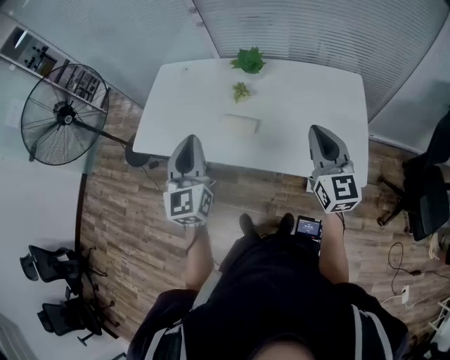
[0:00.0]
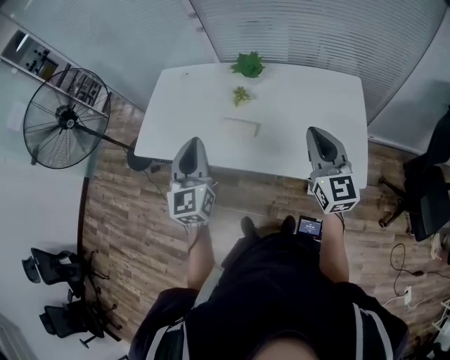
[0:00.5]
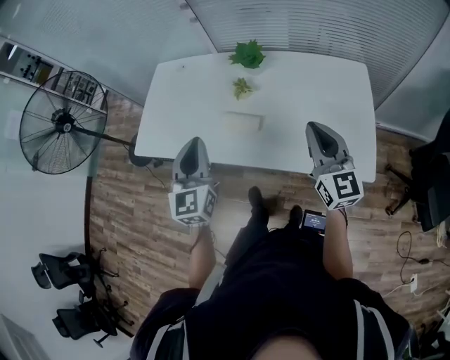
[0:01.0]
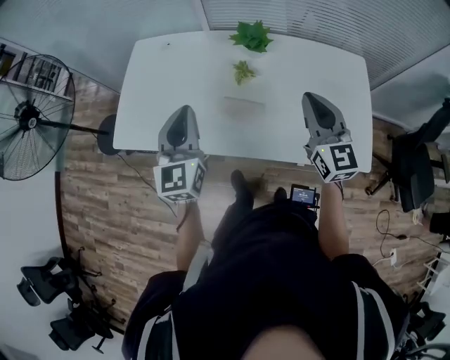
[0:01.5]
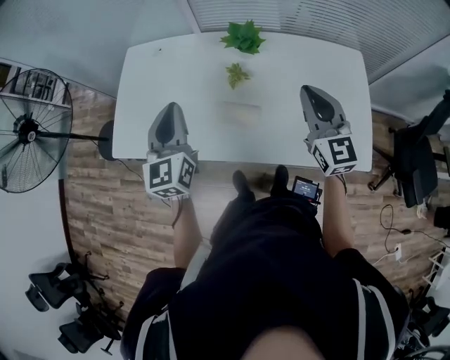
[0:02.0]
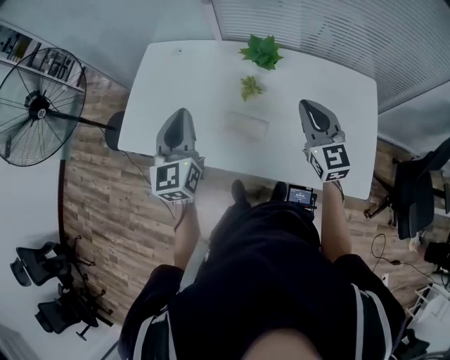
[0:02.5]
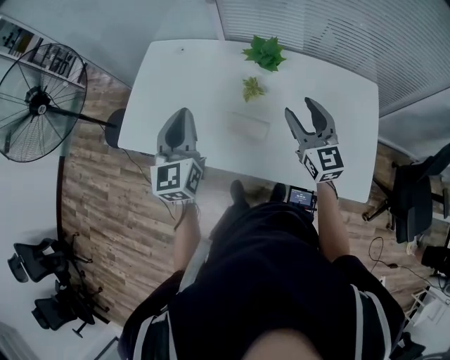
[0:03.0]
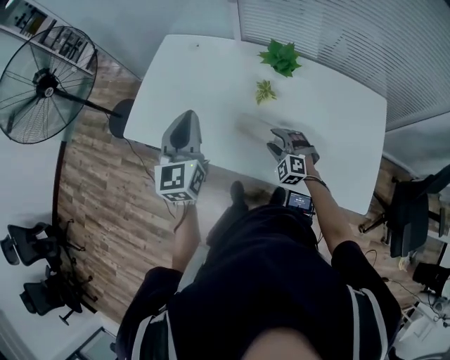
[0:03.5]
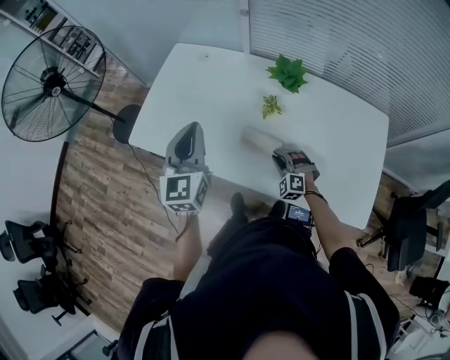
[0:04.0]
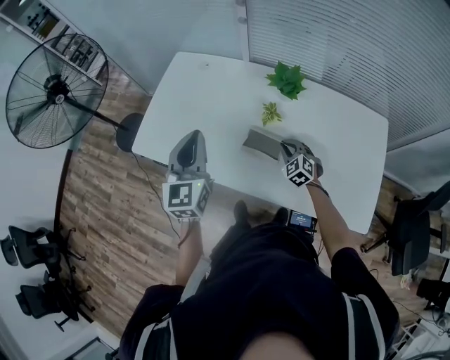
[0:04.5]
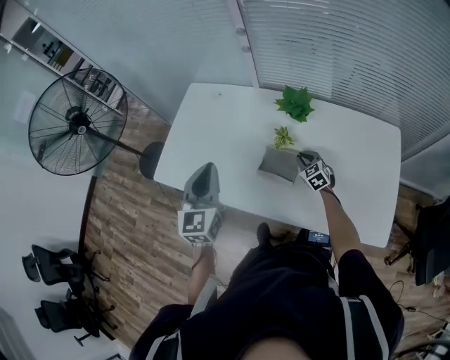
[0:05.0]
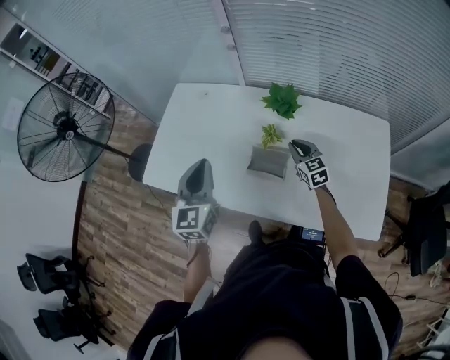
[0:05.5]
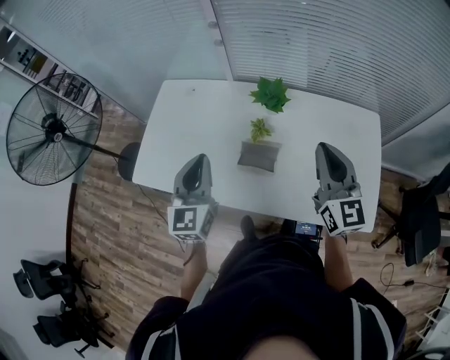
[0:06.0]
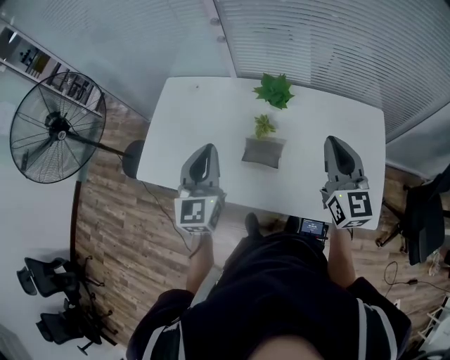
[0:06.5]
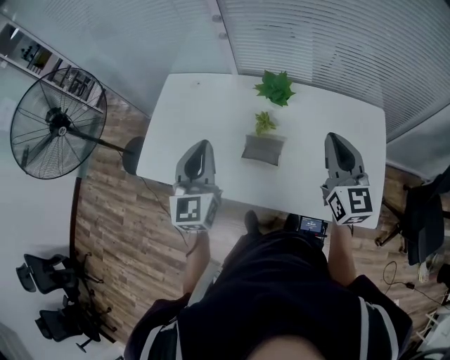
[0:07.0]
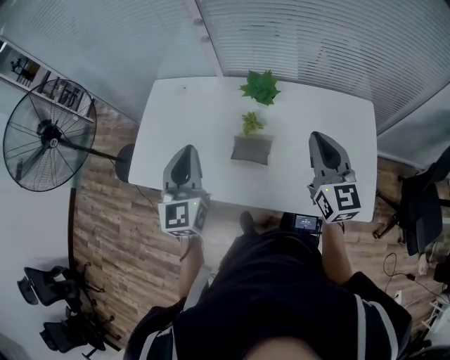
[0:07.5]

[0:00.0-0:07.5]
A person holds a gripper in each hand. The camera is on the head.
0:00.0 to 0:02.0: The grippers both shift forward and to the left by roughly 15 cm.
0:02.0 to 0:04.0: The right gripper is displaced downward by roughly 30 cm, twists approximately 60 degrees counterclockwise, seen from behind, and opens and closes again.
0:04.0 to 0:05.5: The right gripper moves forward, upward and to the right, some 20 cm, and rotates around the line of its fingers by some 60 degrees, clockwise from behind.
0:05.5 to 0:07.5: The left gripper shifts by roughly 5 cm, while the right gripper shifts roughly 25 cm upward and backward, and turns by about 30 degrees.

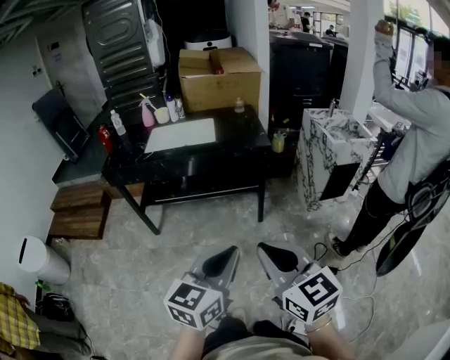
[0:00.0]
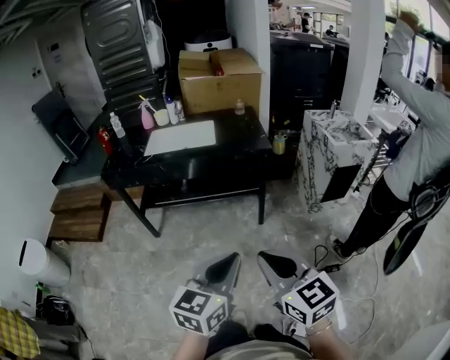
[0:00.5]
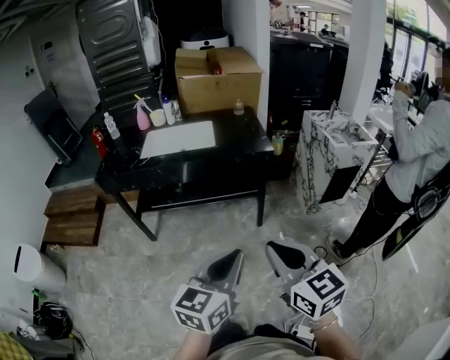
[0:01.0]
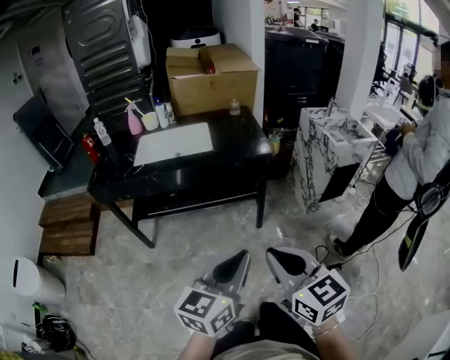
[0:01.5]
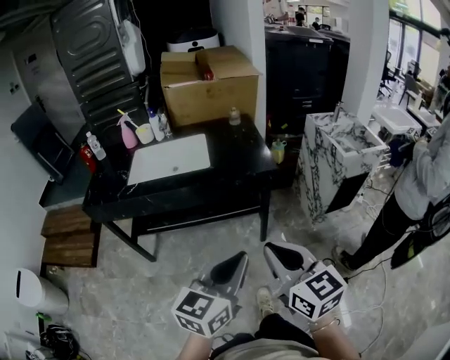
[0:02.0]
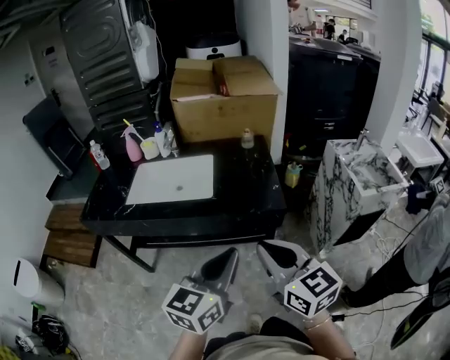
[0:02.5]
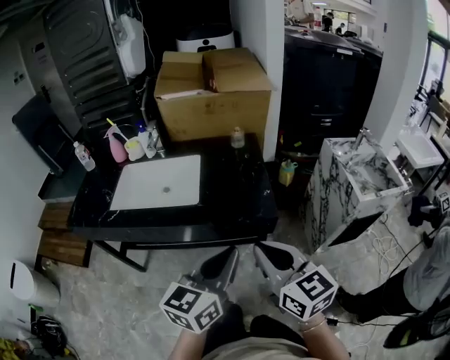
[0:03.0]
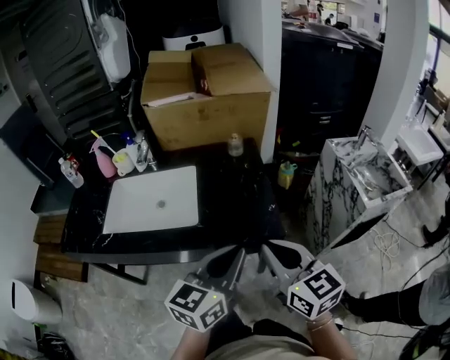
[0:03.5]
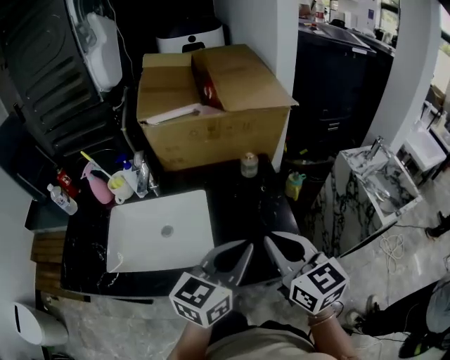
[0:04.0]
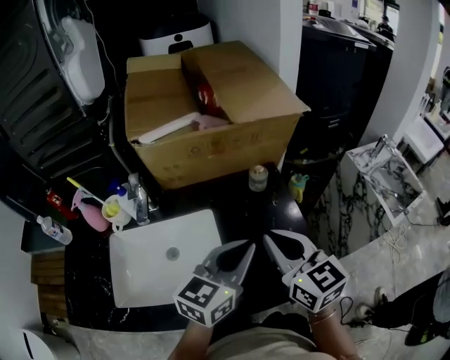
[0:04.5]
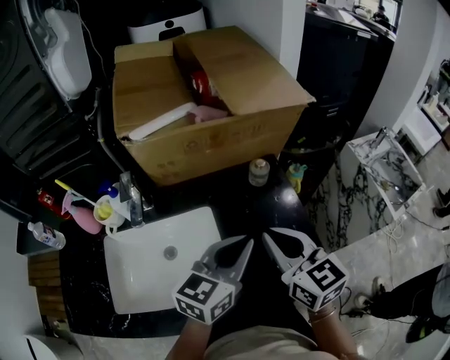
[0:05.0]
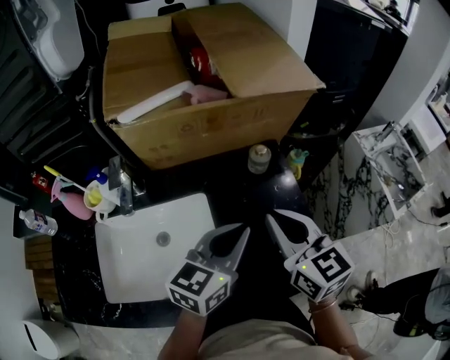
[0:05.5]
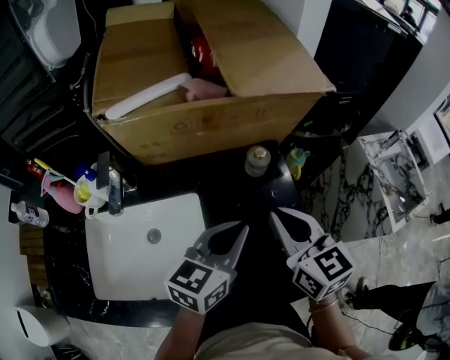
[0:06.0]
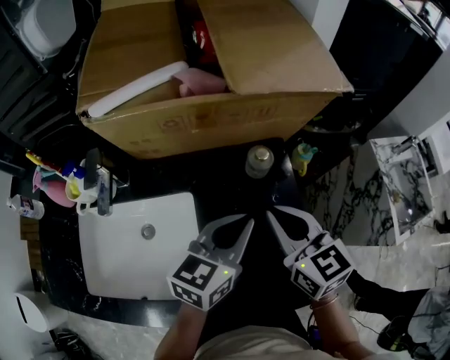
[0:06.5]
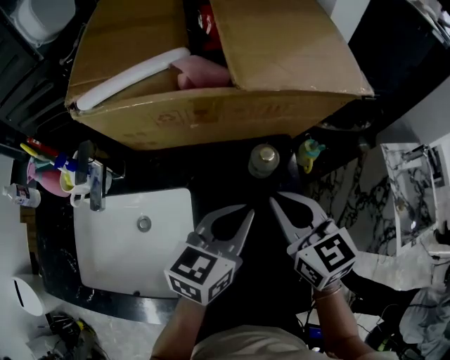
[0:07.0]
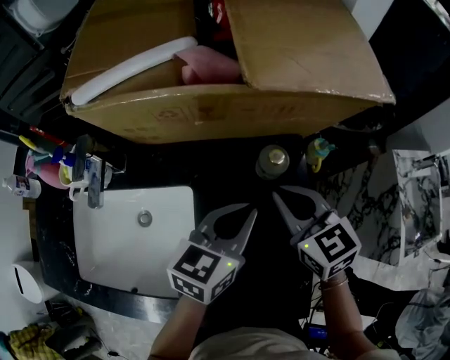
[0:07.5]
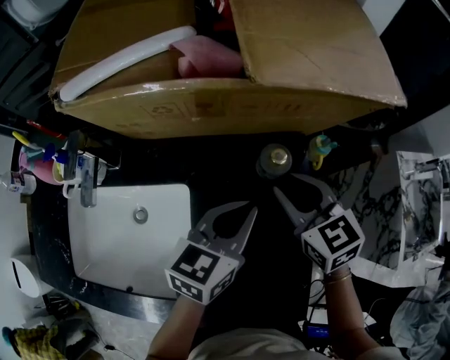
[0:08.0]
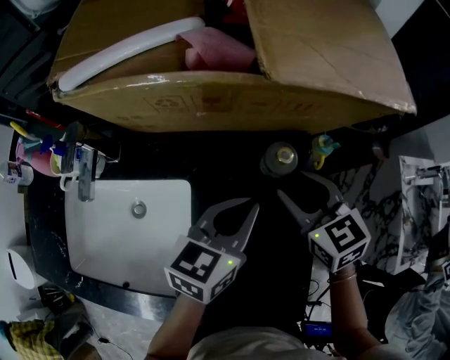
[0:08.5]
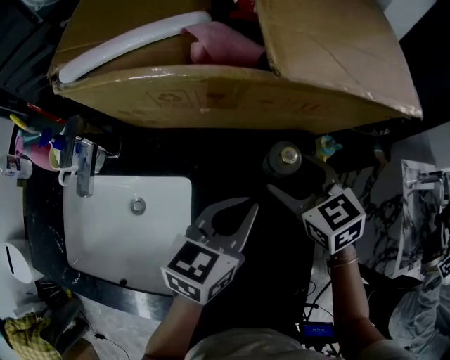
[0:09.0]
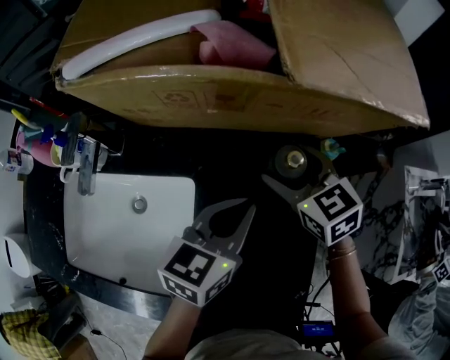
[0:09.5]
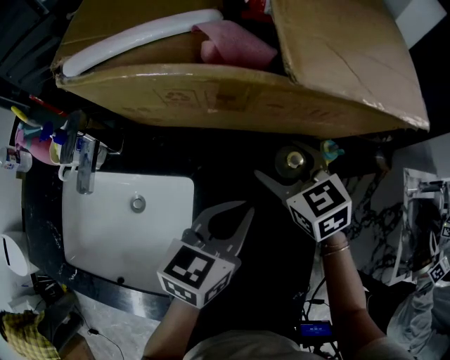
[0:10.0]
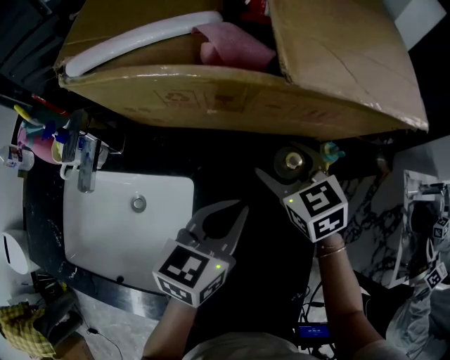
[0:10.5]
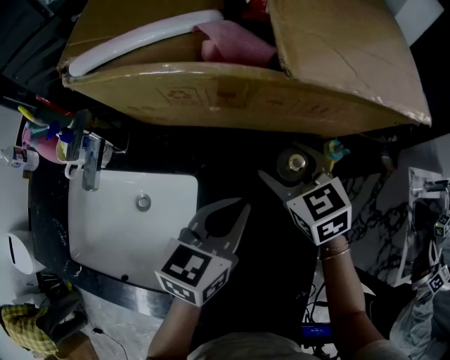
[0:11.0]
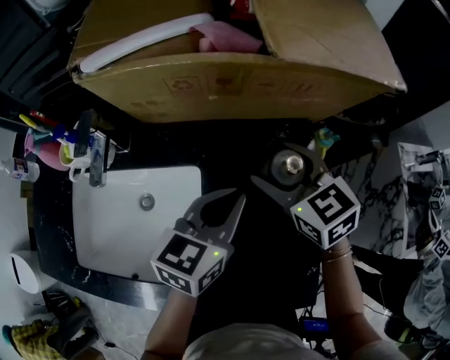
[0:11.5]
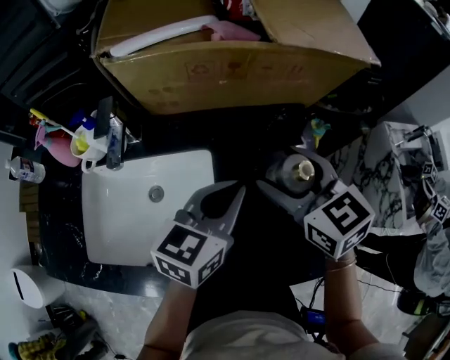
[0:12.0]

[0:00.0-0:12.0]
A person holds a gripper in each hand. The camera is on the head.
0:00.0 to 0:02.0: Both grippers travel together forward, about 25 cm.
0:02.0 to 0:04.0: Both grippers are carried forward, roughly 50 cm.
0:04.0 to 0:06.0: The right gripper heads forward, covering some 20 cm, while the left gripper is displaced forward and downward by roughly 20 cm.
0:06.0 to 0:08.0: Both grippers move forward and downward, approximately 15 cm. The right gripper changes its angle by about 20 degrees.
0:08.0 to 0:10.0: The right gripper goes some 5 cm forward, and opens its fingers.
0:10.0 to 0:12.0: The left gripper travels backward, to the left and upward by roughly 10 cm, while the right gripper shifts some 20 cm backward and upward.

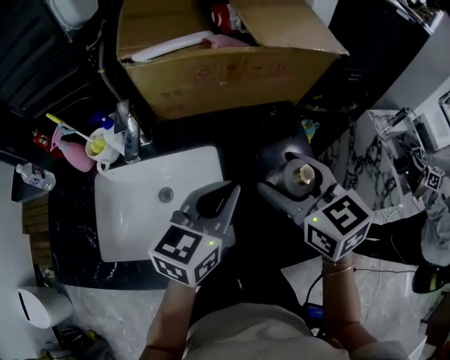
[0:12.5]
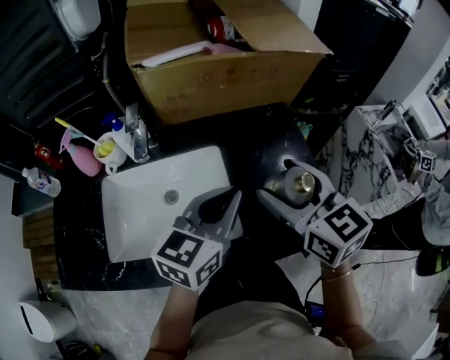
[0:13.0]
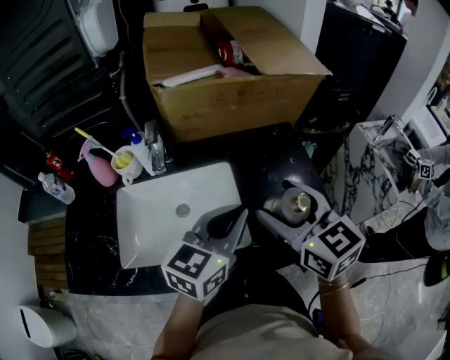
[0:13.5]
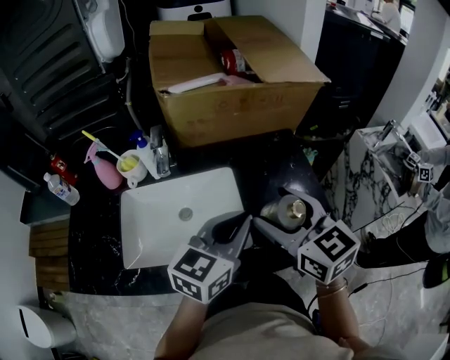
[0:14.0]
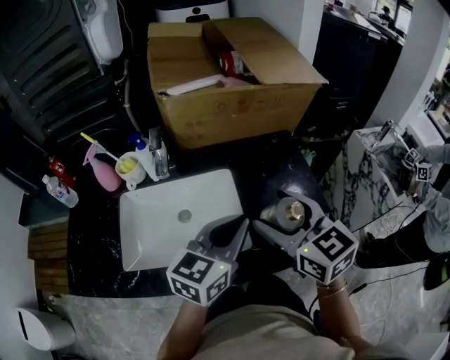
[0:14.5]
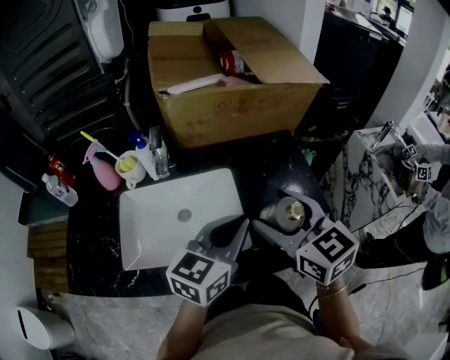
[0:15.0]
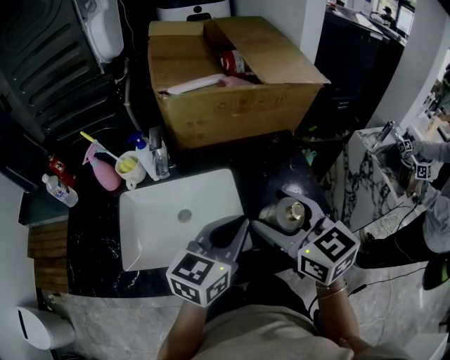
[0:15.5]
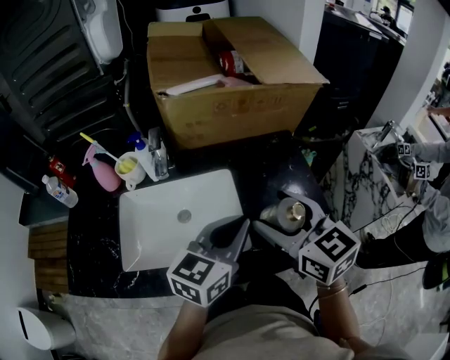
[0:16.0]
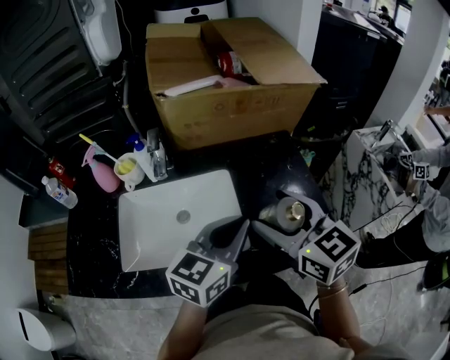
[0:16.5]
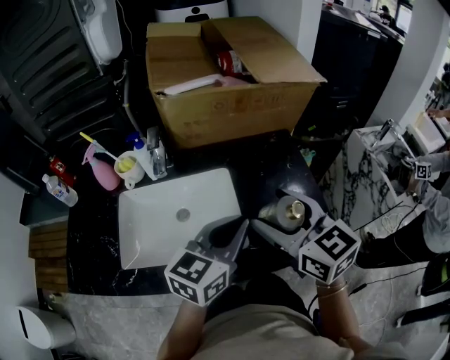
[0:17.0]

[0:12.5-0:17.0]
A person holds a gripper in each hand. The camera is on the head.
0:12.5 to 0:14.5: The right gripper shifts roughly 10 cm backward and to the left; the left gripper moves backward, roughly 10 cm.
0:14.5 to 0:17.0: The two grippers keep their place.

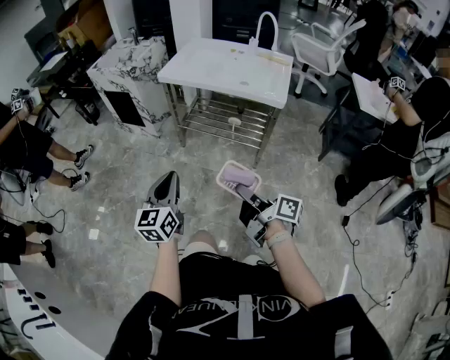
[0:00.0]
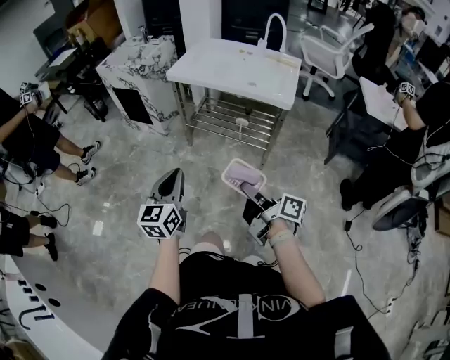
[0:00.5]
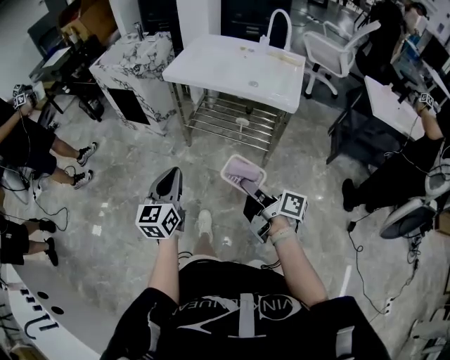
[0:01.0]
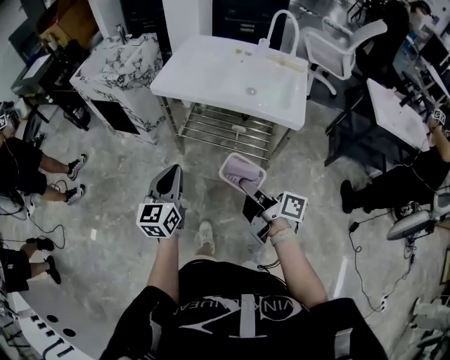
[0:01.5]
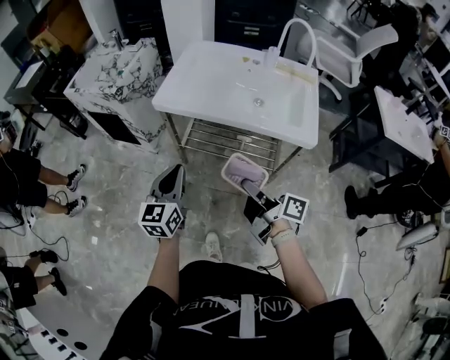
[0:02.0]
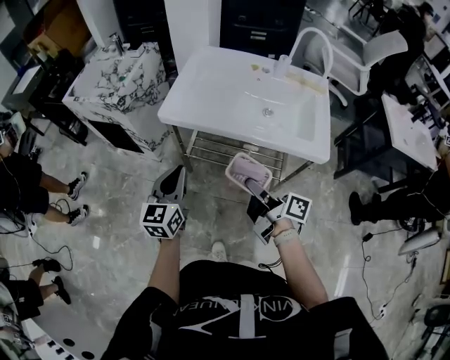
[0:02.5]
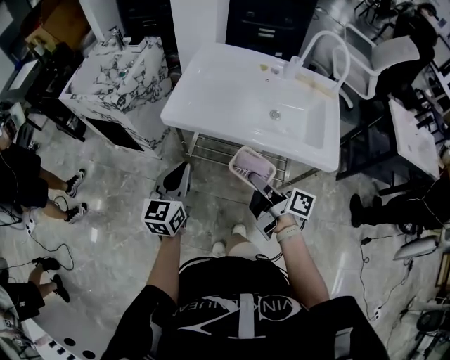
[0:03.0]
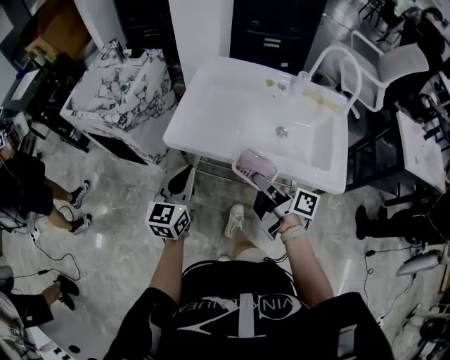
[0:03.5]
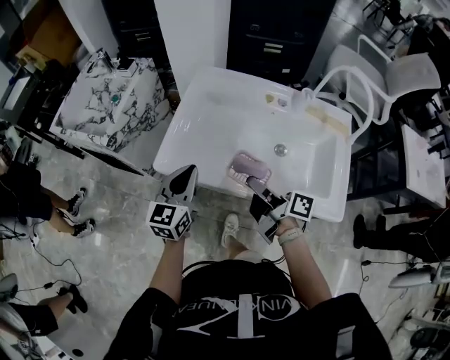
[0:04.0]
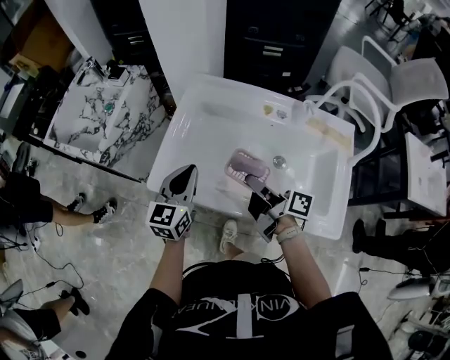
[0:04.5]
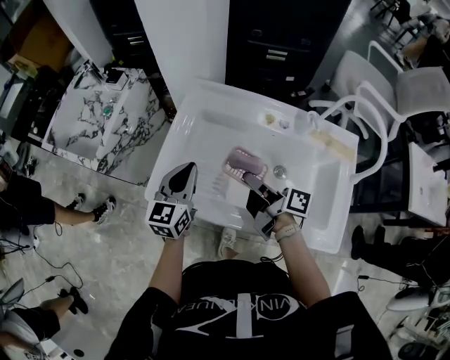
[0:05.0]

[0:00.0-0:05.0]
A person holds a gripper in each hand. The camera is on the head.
0:00.0 to 0:02.5: The grippers both shift forward by approximately 40 cm.
0:02.5 to 0:05.0: Both grippers travel together forward, some 35 cm.
